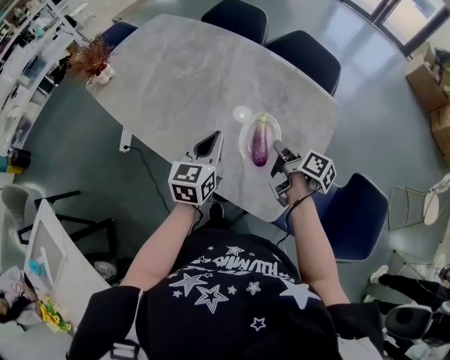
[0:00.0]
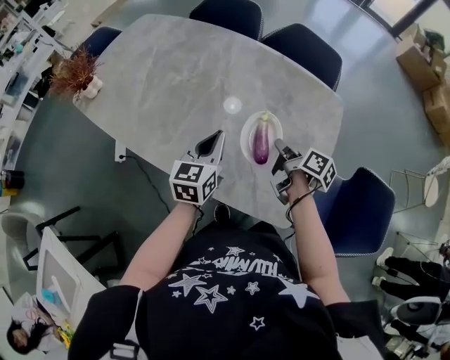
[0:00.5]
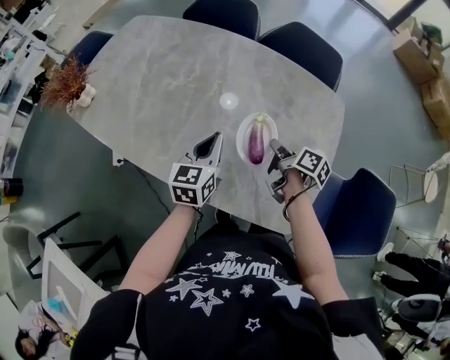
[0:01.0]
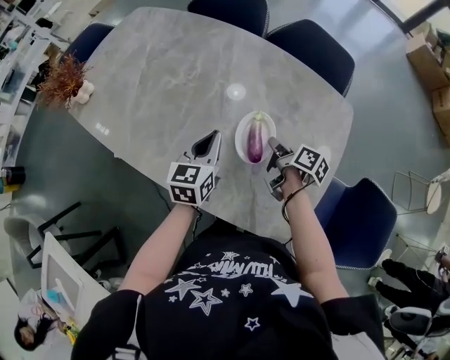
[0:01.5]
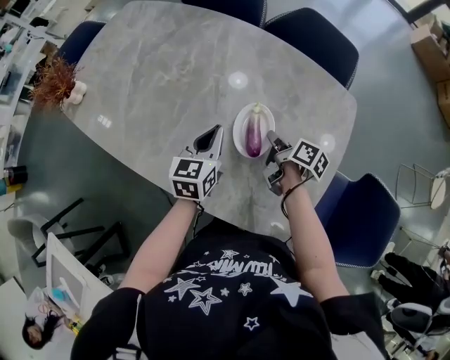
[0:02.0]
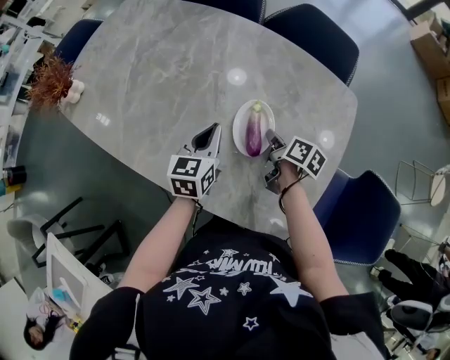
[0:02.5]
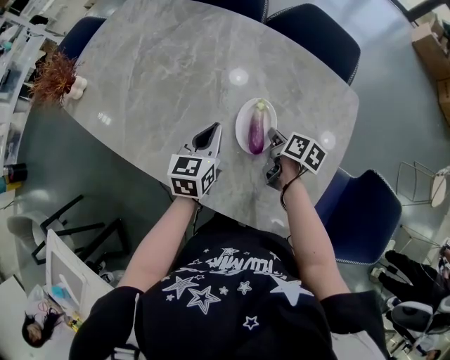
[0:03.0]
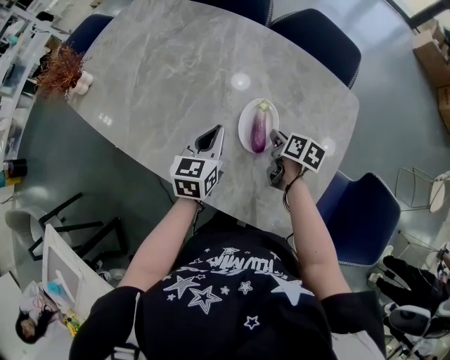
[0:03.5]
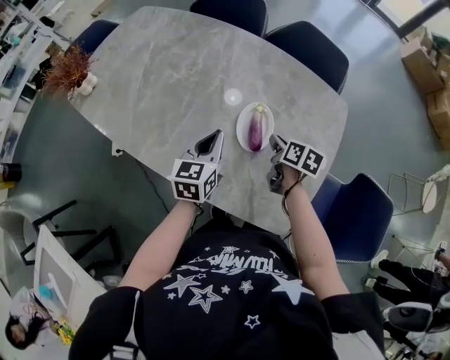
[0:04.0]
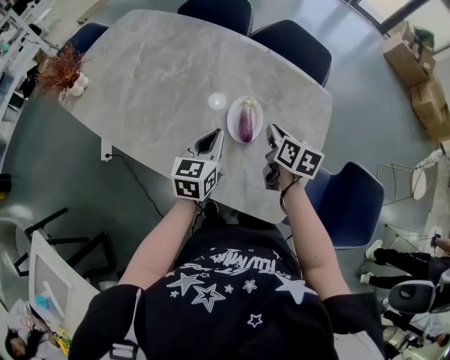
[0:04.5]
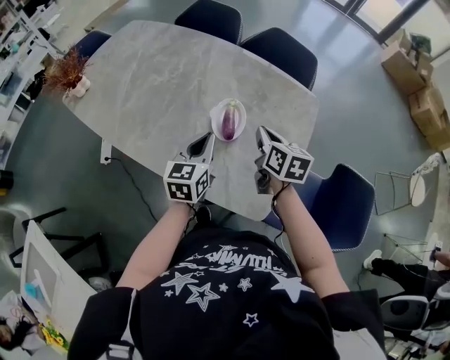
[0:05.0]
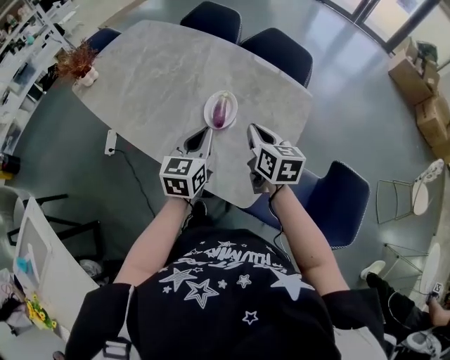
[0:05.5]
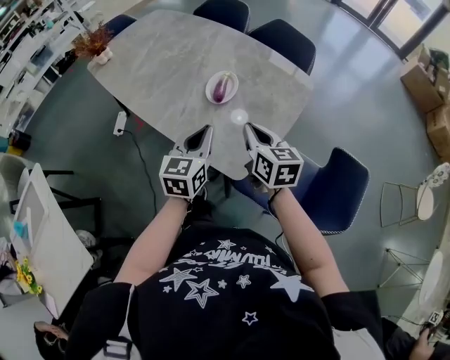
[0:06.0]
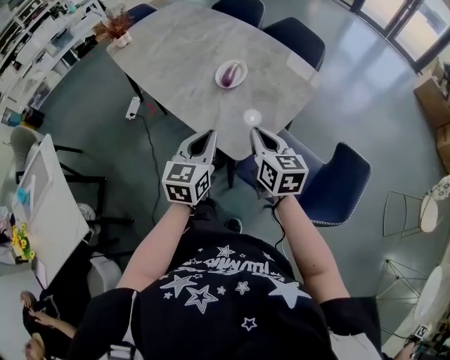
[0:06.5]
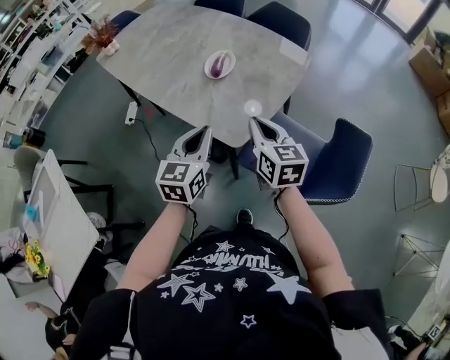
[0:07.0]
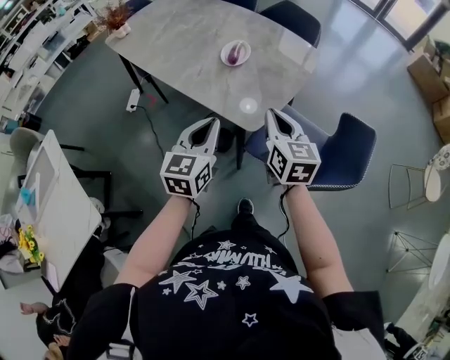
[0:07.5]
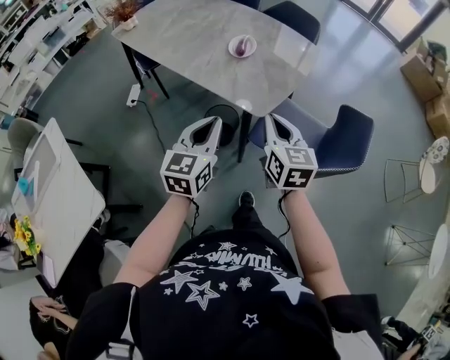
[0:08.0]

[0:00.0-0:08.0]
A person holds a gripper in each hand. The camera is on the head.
0:00.0 to 0:02.0: Both grippers move forward and downward, approximately 15 cm.
0:02.0 to 0:04.0: The left gripper heads backward, covering some 5 cm, while the right gripper swivels about 30 degrees.
0:04.0 to 0:06.0: The left gripper heads backward and to the right, covering roughly 25 cm, while the right gripper moves backward and upward, roughly 30 cm, and turns by approximately 40 degrees.
0:06.0 to 0:08.0: The grippers both shift backward by approximately 25 cm.

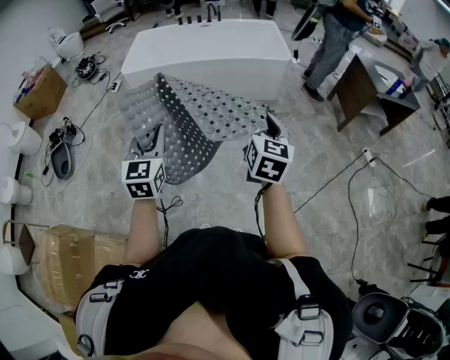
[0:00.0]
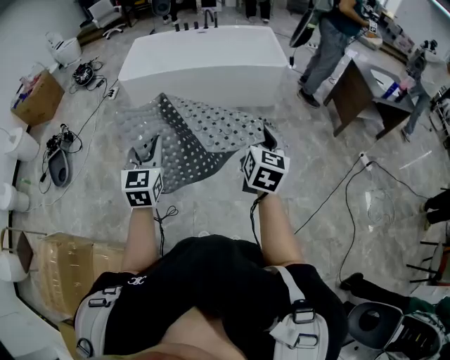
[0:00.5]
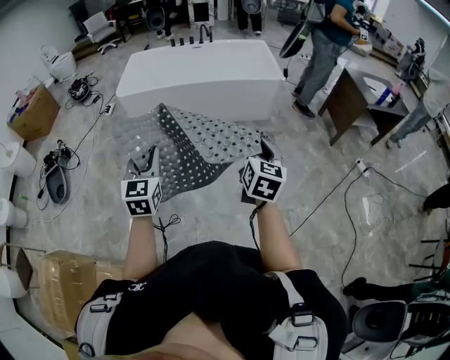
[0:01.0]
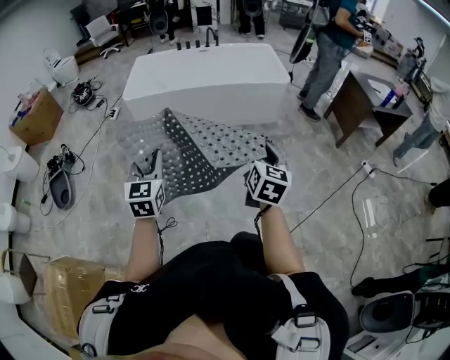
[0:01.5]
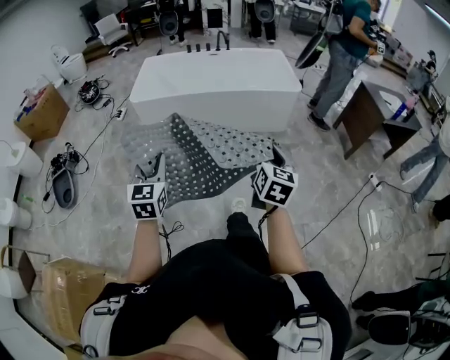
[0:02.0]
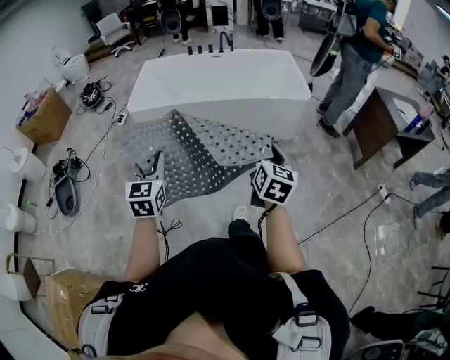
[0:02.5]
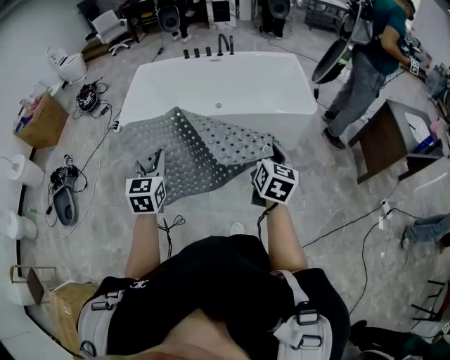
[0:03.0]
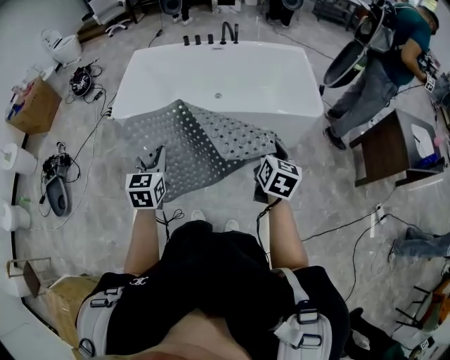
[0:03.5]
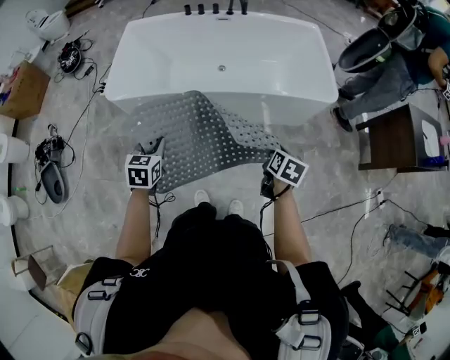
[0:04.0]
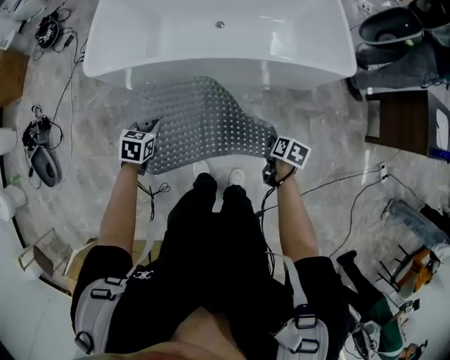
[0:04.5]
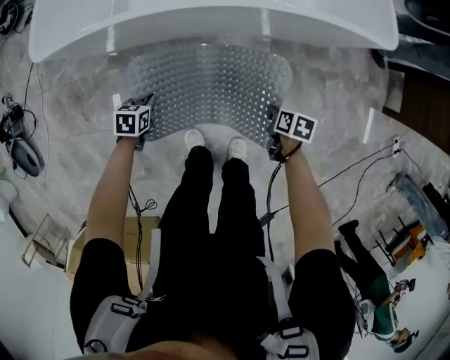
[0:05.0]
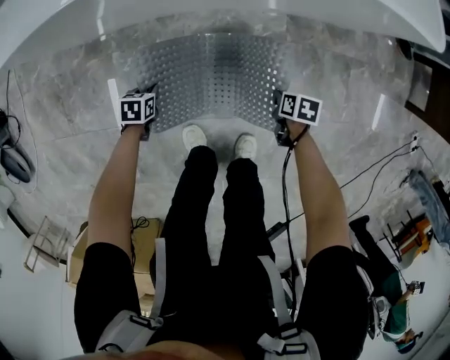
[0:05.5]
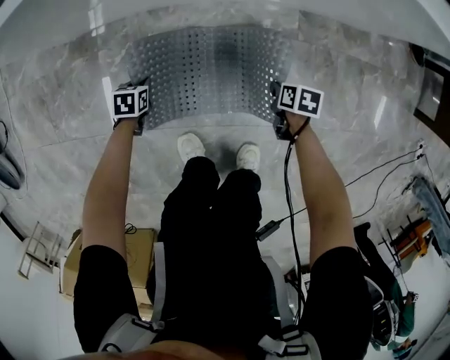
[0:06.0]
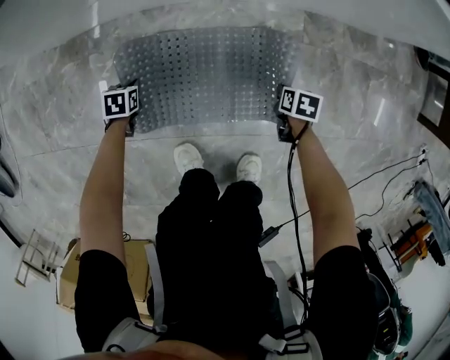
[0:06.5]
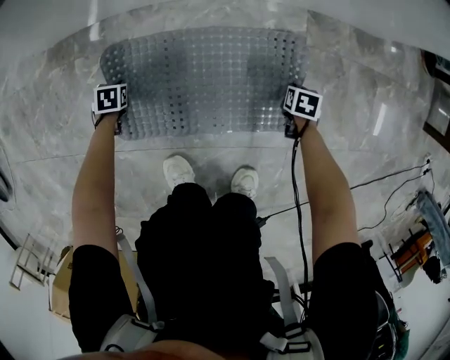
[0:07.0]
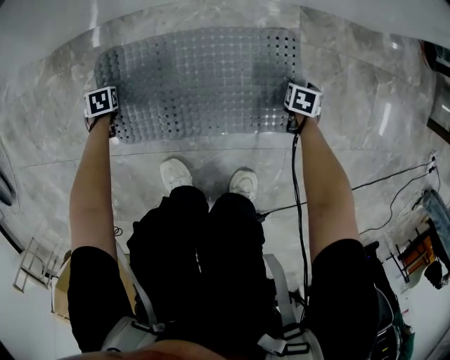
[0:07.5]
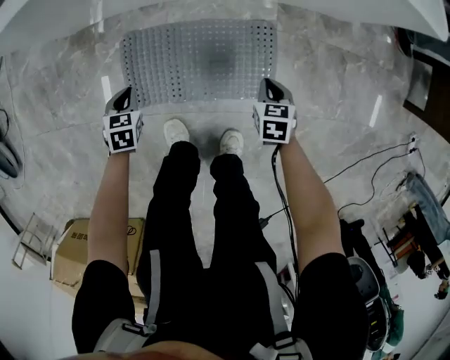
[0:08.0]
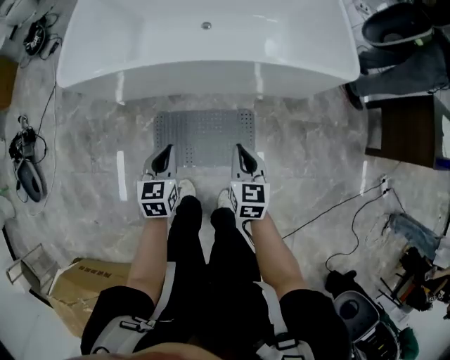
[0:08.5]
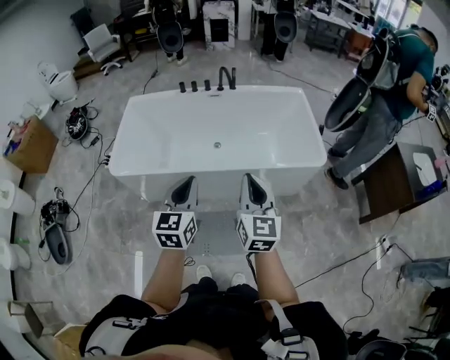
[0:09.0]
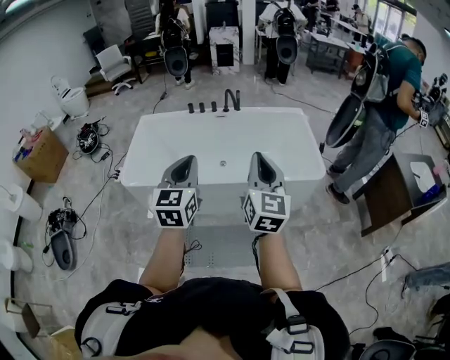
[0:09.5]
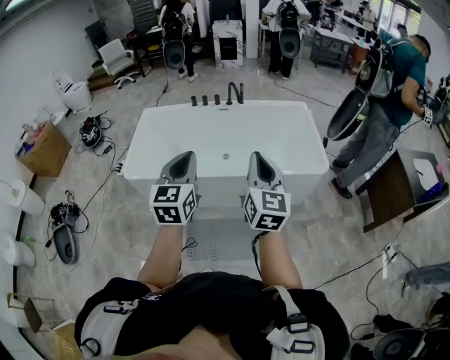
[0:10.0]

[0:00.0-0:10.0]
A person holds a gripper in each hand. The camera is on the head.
0:00.0 to 0:02.0: The two grippers go some 15 cm to the left and forward.
0:02.0 to 0:04.0: Both grippers are carried forward, roughly 50 cm. The left gripper swivels some 30 degrees. The right gripper moves downward, roughly 20 cm, and tilts its fingers approximately 30 degrees downward.
0:04.0 to 0:06.0: The two grippers go approximately 70 cm downward. The left gripper points its fingers roughly 30 degrees further downward, while the right gripper rotates some 30 degrees.
0:06.0 to 0:08.0: Both grippers travel together upward, about 15 cm. The right gripper rotates roughly 30 degrees, and opens, then closes again, while the left gripper opens and closes again.
0:08.0 to 0:10.0: The two grippers go some 90 cm upward. The right gripper angles its fingers upward, by some 60 degrees. Meanwhile the left gripper angles its fingers upward, by about 60 degrees.

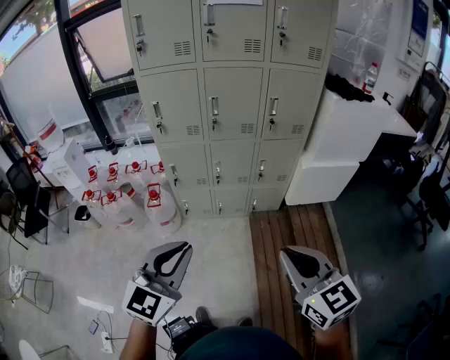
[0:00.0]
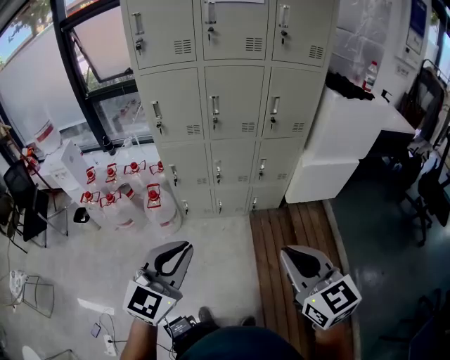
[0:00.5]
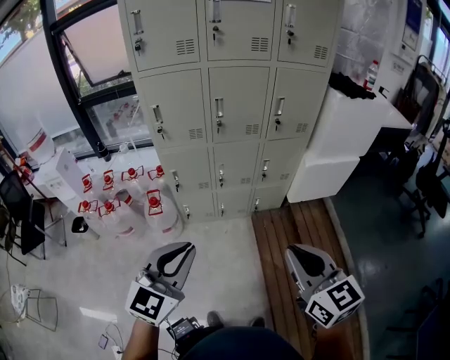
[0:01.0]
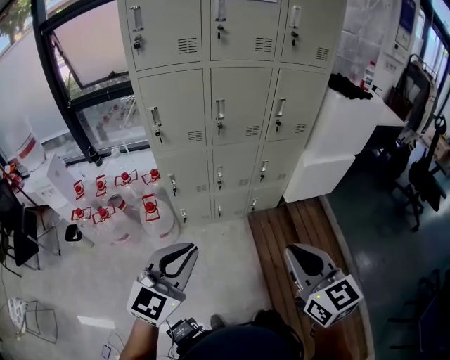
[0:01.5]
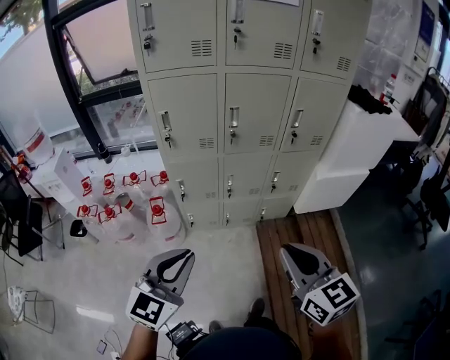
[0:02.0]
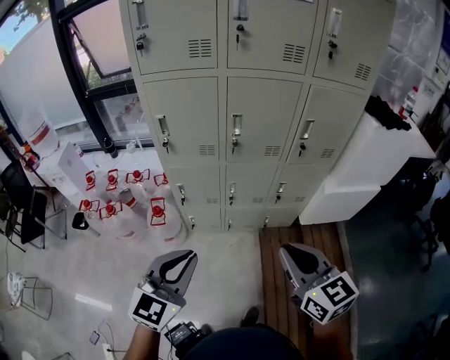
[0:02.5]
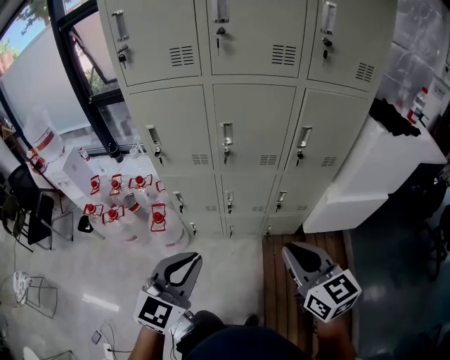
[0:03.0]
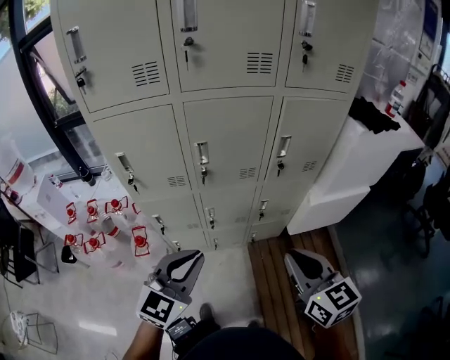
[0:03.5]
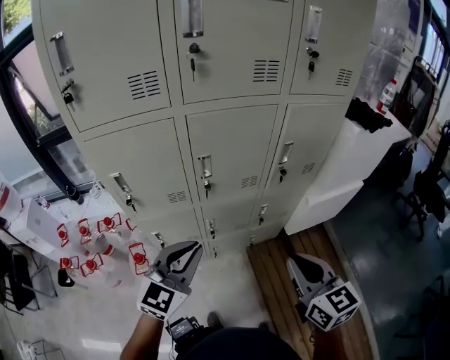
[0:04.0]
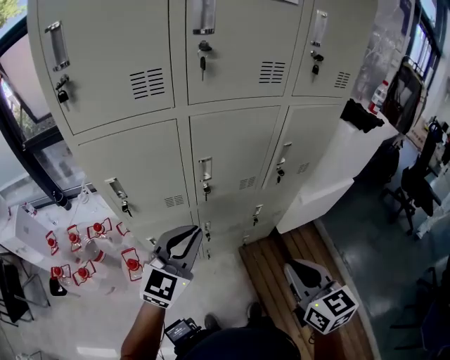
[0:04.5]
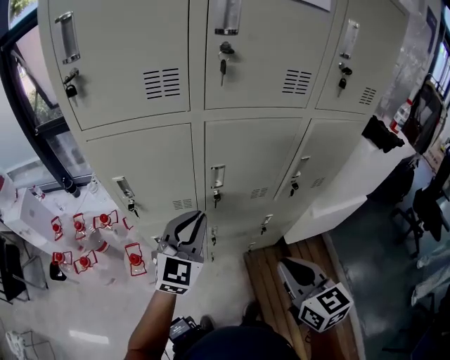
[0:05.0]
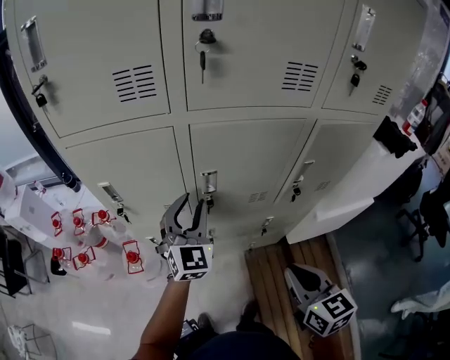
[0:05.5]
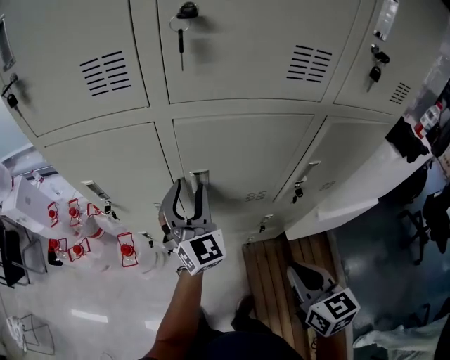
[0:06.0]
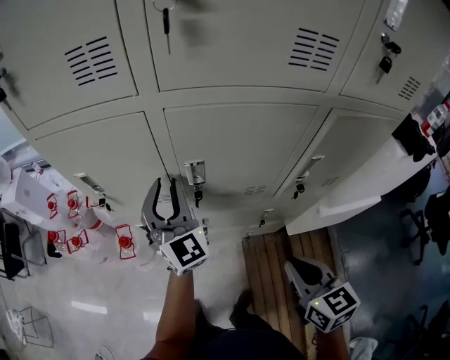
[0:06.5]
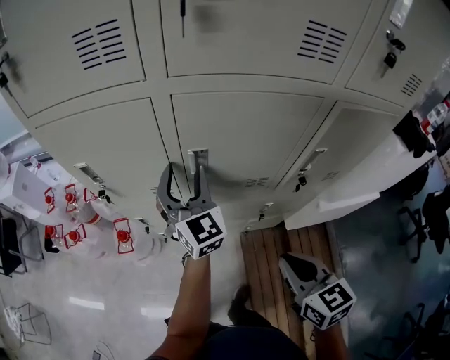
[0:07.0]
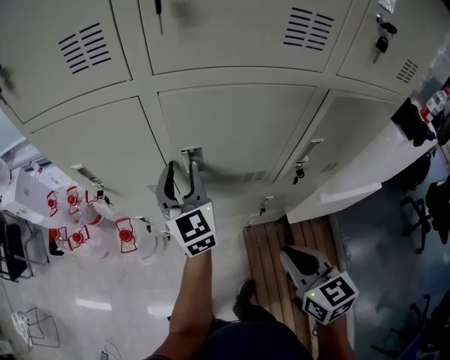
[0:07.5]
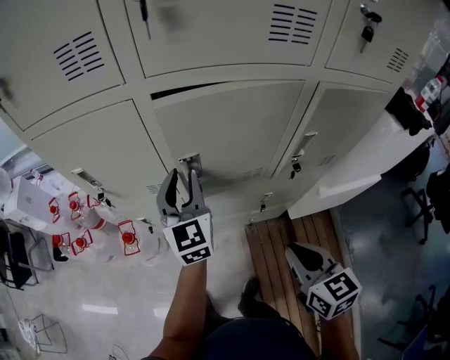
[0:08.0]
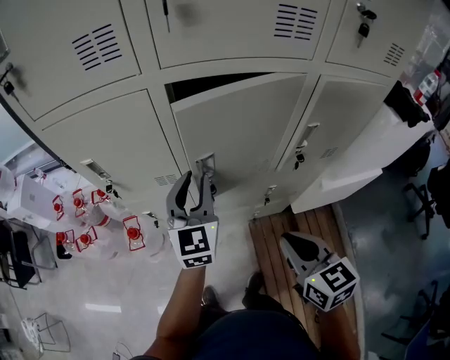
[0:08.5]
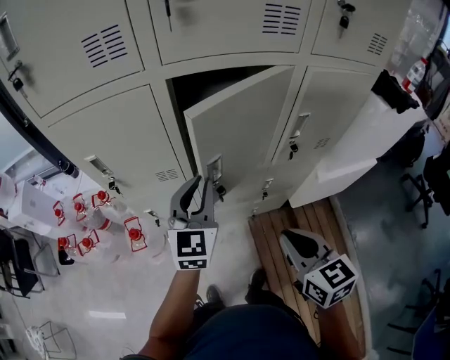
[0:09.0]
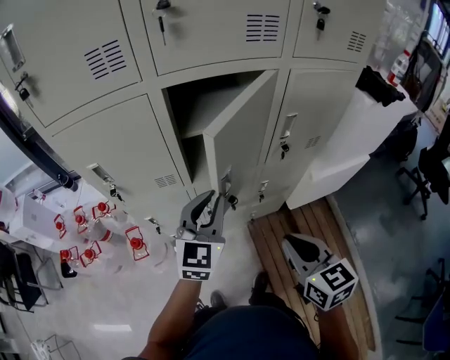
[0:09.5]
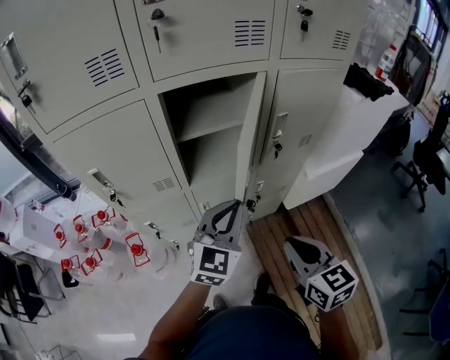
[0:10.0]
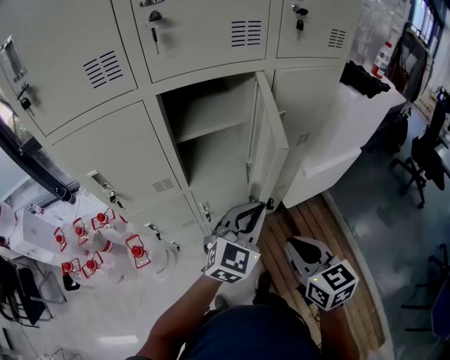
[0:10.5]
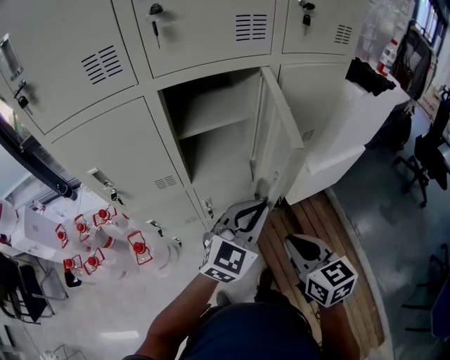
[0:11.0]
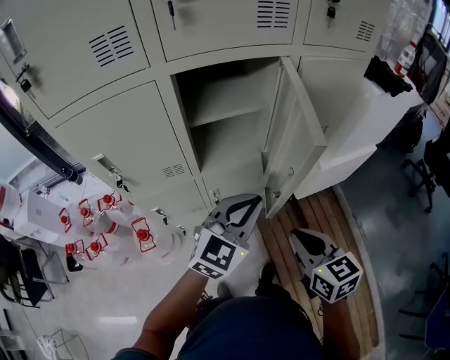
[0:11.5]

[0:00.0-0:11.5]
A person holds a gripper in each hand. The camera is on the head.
0:00.0 to 0:02.0: The right gripper travels forward and to the left by about 20 cm; the left gripper shifts about 20 cm to the left and forward.
0:02.0 to 0:04.0: The two grippers go approximately 30 cm forward.
0:04.0 to 0:06.0: The left gripper changes place by roughly 25 cm, swivels some 50 degrees, and opens its fingers. The right gripper changes place by some 15 cm.
0:06.0 to 0:07.5: The left gripper swivels approximately 20 degrees.
0:07.5 to 0:09.5: The left gripper travels backward by about 15 cm, swivels about 40 degrees, and closes its fingers; the right gripper is displaced backward by about 10 cm.
0:09.5 to 0:11.5: The left gripper shifts about 5 cm to the right, and turns by roughly 30 degrees.
